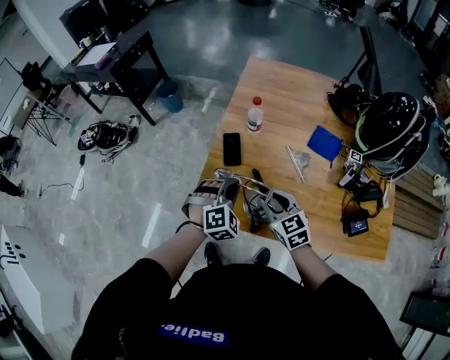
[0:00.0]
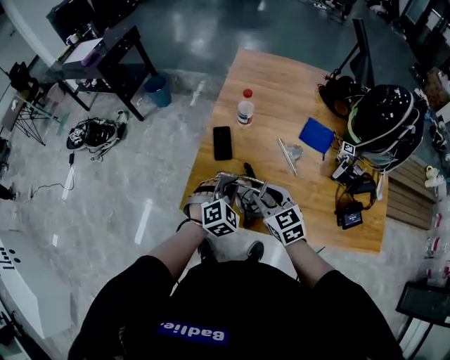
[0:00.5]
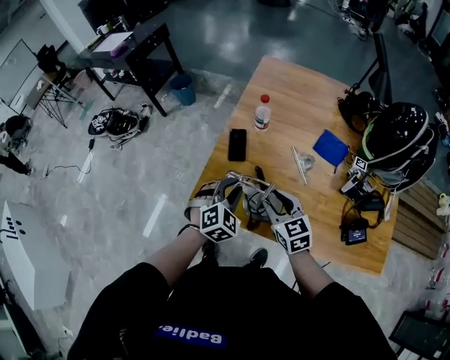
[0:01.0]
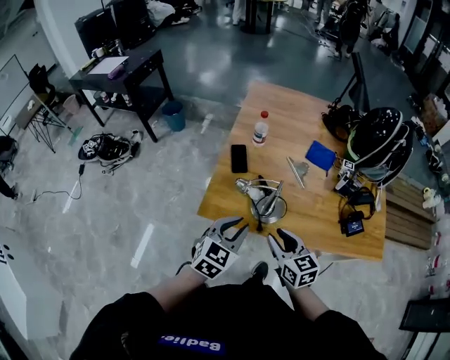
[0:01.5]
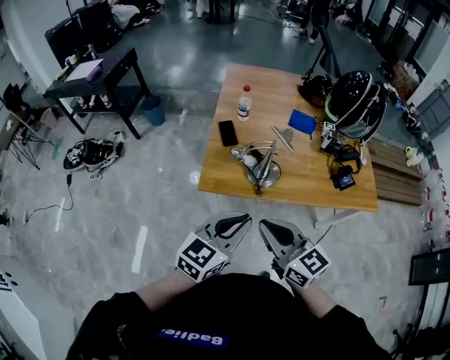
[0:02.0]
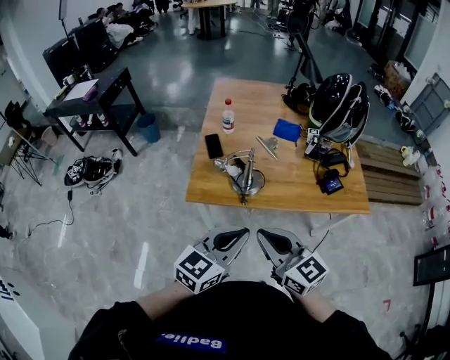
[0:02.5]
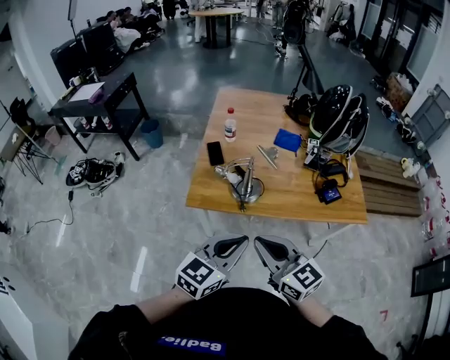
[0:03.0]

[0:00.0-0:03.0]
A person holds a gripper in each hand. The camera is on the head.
0:00.0 to 0:01.5: Both grippers travel together backward, roughly 15 cm. The left gripper rotates around the line of its fingers by approximately 40 degrees, counterclockwise from behind.
0:01.5 to 0:03.0: The grippers both shift backward and upward by roughly 20 cm. The right gripper closes its fingers; the left gripper turns by about 20 degrees.

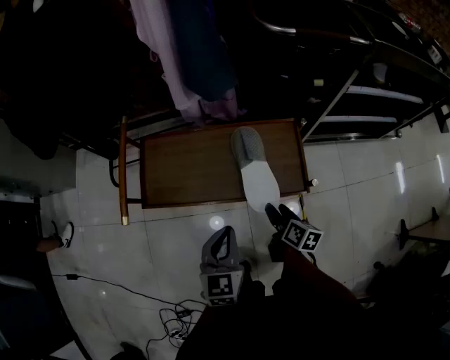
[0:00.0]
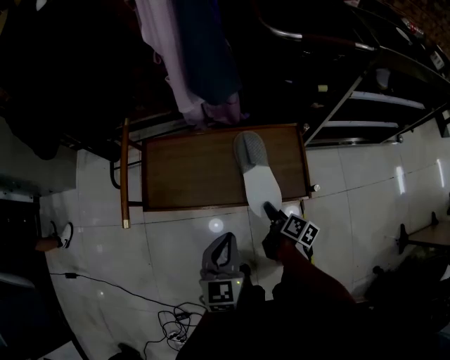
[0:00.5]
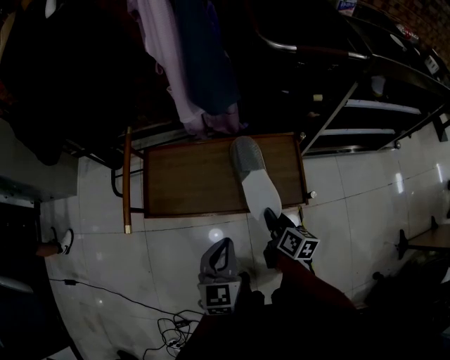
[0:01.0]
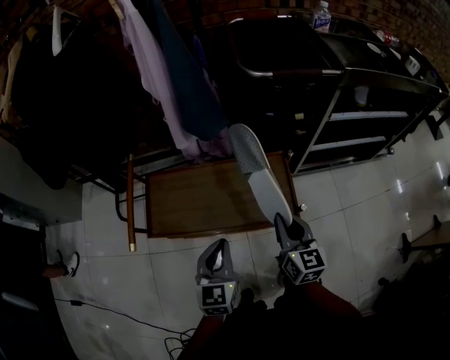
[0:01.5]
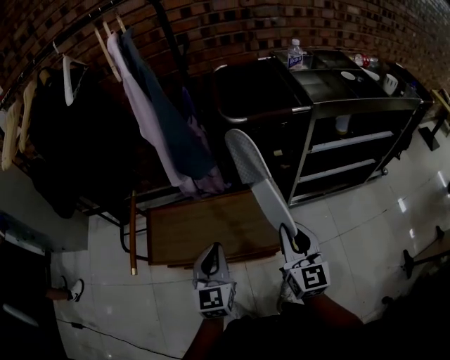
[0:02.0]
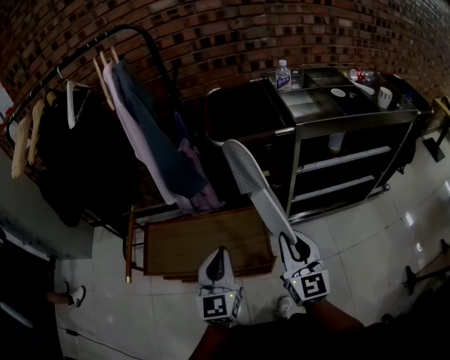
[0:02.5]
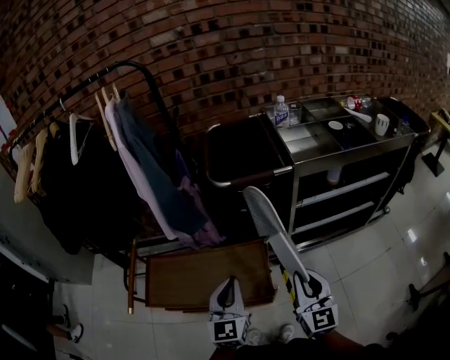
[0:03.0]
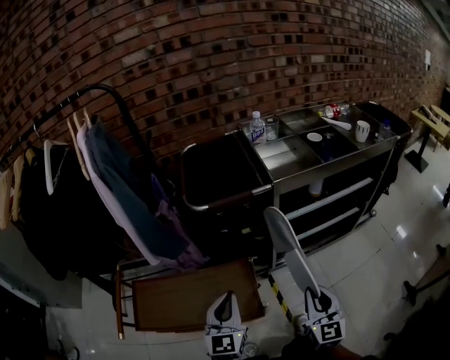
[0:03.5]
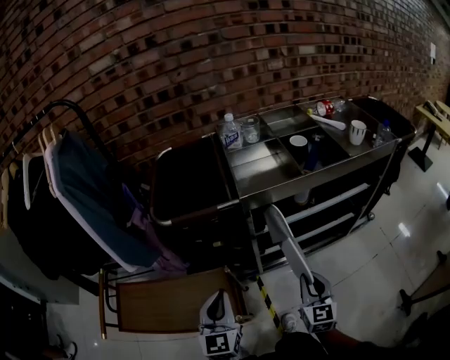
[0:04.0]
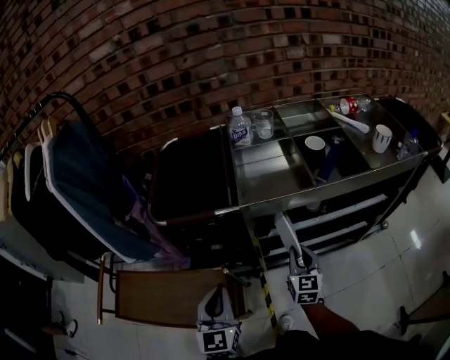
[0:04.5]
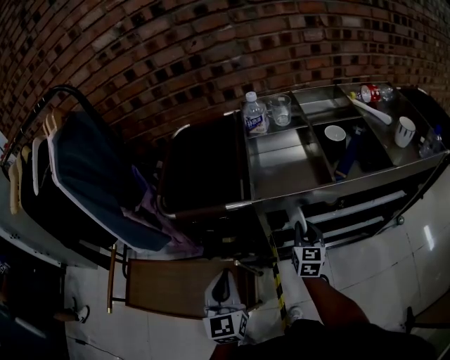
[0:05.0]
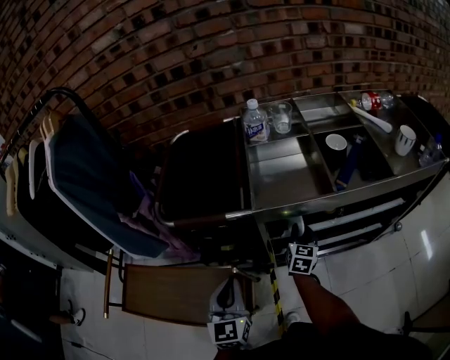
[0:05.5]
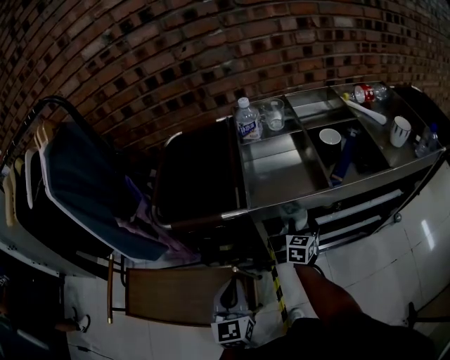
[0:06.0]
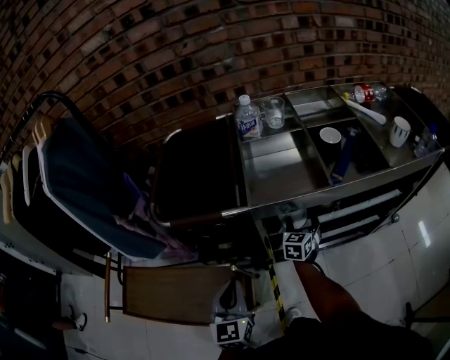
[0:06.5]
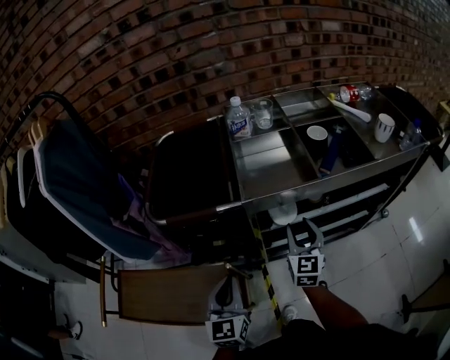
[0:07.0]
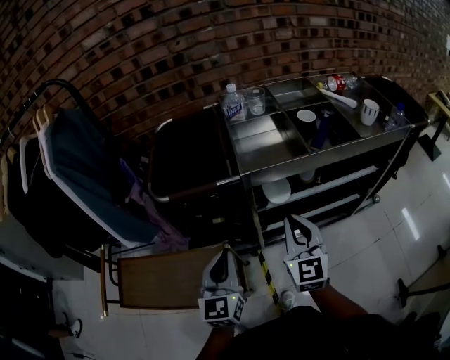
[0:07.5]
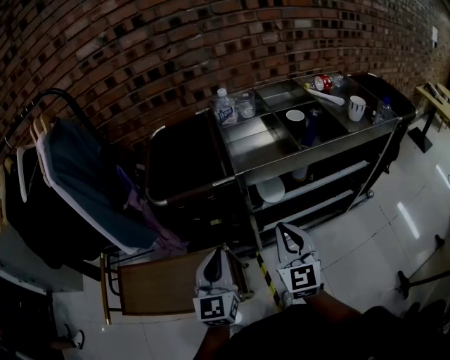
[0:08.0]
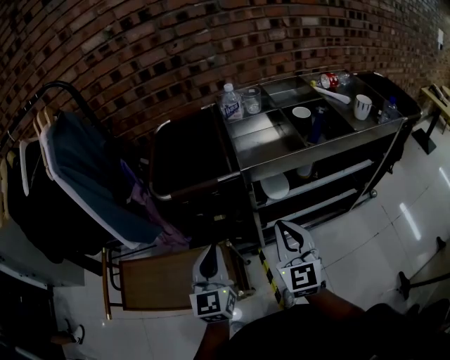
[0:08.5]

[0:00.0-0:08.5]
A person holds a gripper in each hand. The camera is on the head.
0:00.0 to 0:02.0: The left gripper moves upward and forward, approximately 15 cm, while the right gripper shifts approximately 30 cm upward, tilts its fingers approximately 30 degrees upward, and closes its fingers.
0:02.0 to 0:04.0: The right gripper moves to the right, approximately 30 cm. Meanwhile the left gripper is displaced to the right and forward by roughly 30 cm.
0:04.0 to 0:06.5: The left gripper shifts approximately 10 cm forward. Meanwhile the right gripper moves forward, about 30 cm, and opens up.
0:06.5 to 0:08.5: The right gripper moves upward and backward, approximately 35 cm, turns by about 30 degrees, and closes its fingers; the left gripper moves upward, some 10 cm.

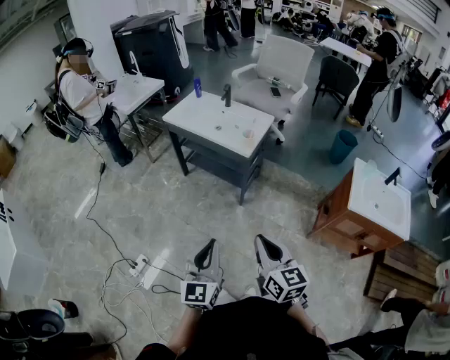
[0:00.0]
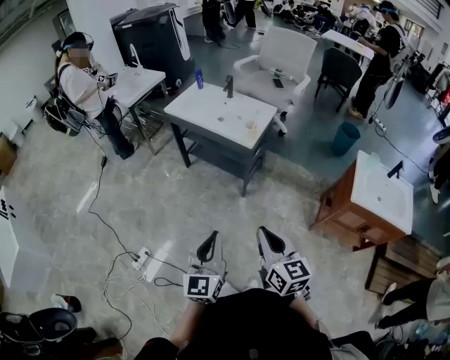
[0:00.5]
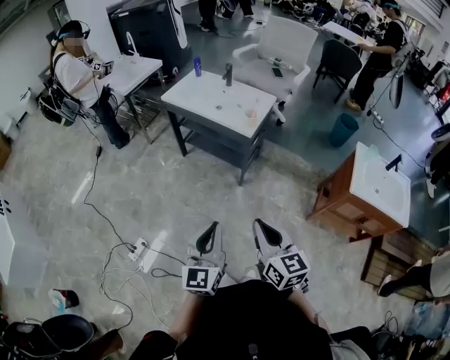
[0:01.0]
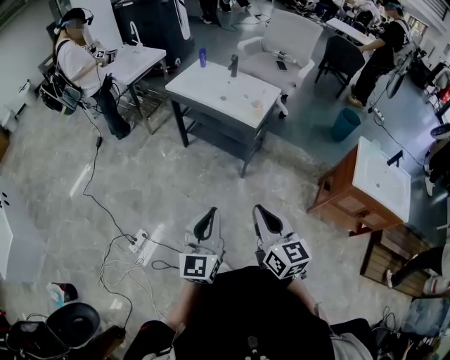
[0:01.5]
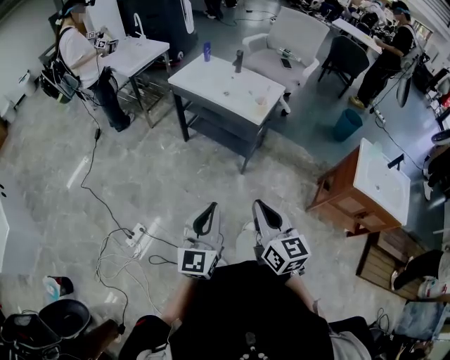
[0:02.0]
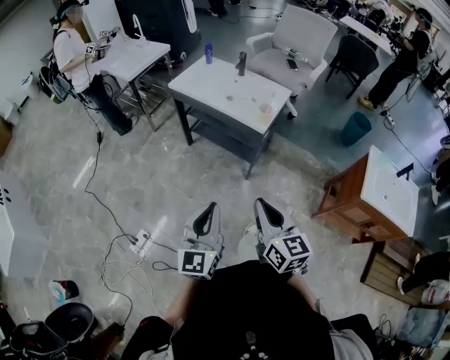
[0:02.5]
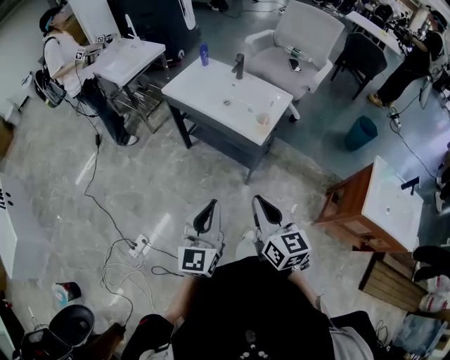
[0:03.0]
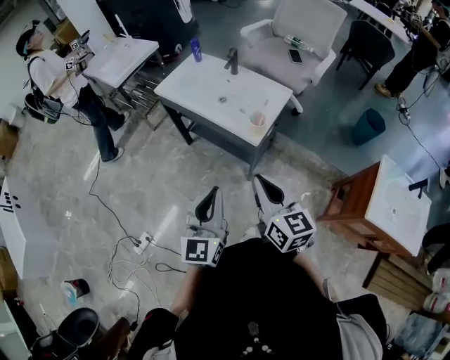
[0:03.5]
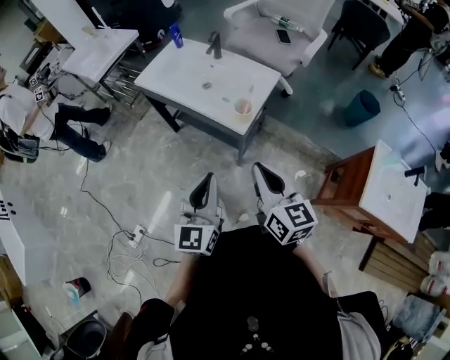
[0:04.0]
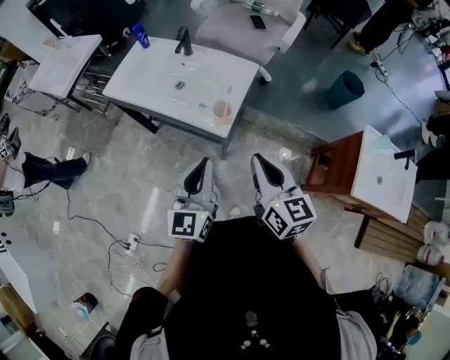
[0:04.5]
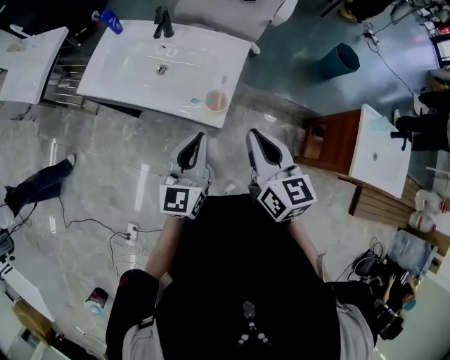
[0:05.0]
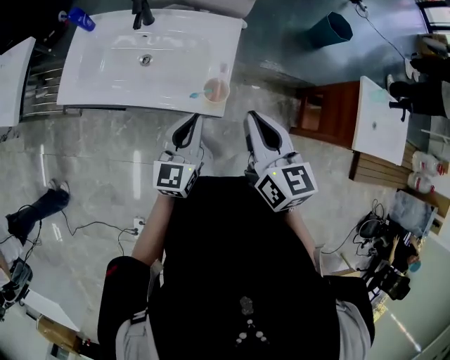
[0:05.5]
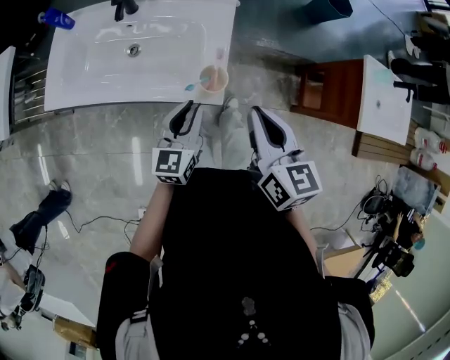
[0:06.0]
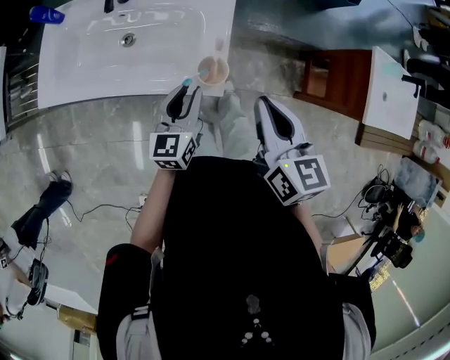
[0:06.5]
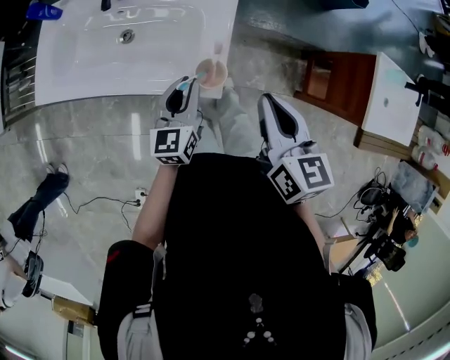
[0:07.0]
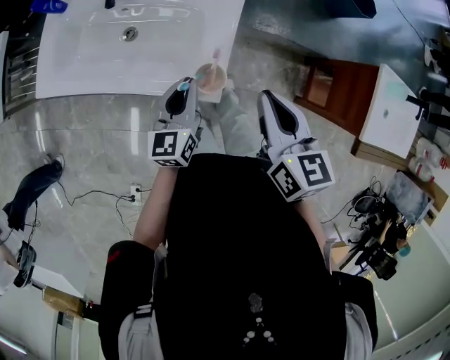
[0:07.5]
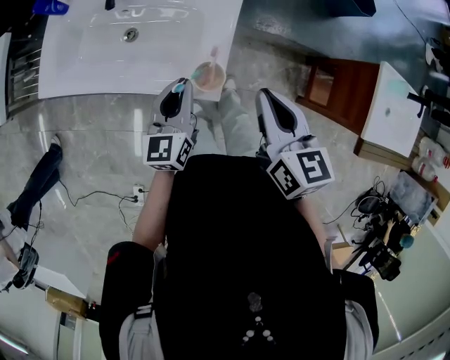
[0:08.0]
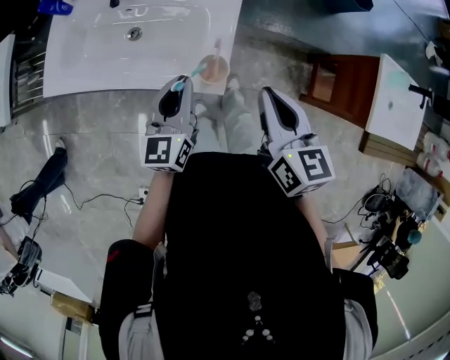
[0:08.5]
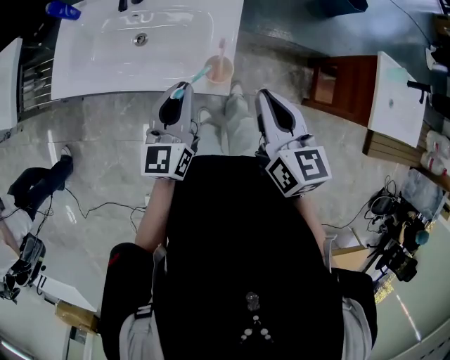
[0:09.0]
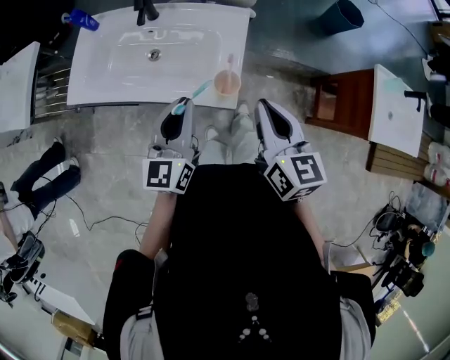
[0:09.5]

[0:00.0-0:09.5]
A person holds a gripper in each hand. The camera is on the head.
0:00.0 to 0:02.0: The two grippers go roughly 5 cm to the left.
0:02.0 to 0:04.0: The two grippers go approximately 35 cm forward and to the right.
0:04.0 to 0:05.5: The right gripper shifts by some 20 cm, and swivels roughly 30 degrees. Meanwhile the left gripper ends up approximately 30 cm from where it was, and rotates roughly 30 degrees.
0:05.5 to 0:07.5: The left gripper heads downward and forward, covering roughly 10 cm, while the right gripper moves forward and downward, roughly 10 cm.
0:07.5 to 0:09.5: The right gripper shifts by roughly 10 cm. Meanwhile the left gripper travels upward by approximately 15 cm.

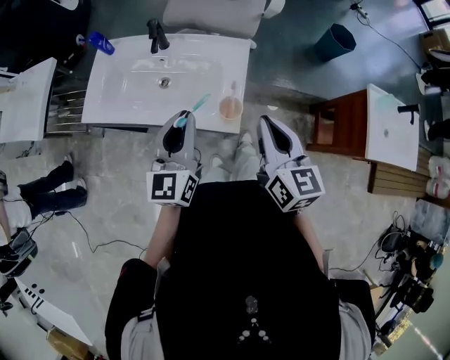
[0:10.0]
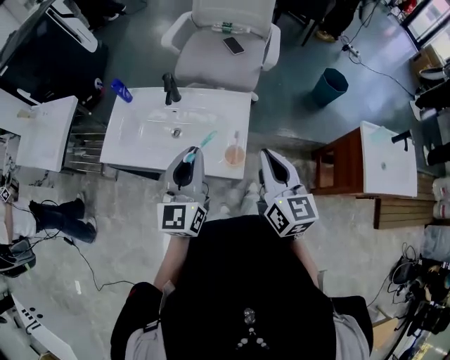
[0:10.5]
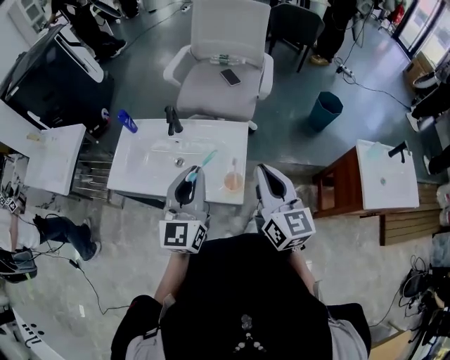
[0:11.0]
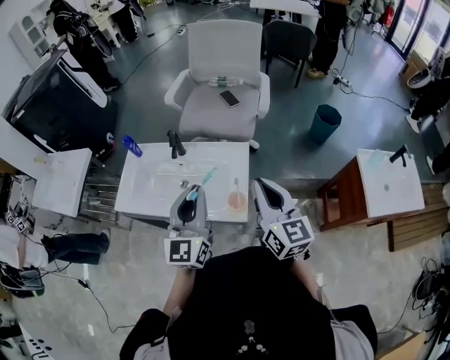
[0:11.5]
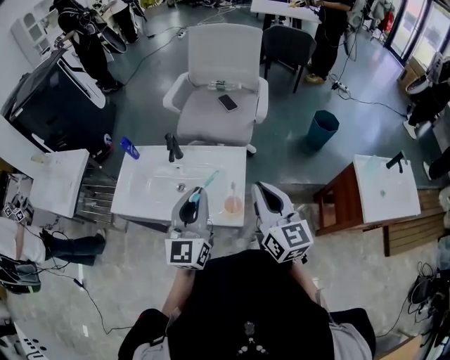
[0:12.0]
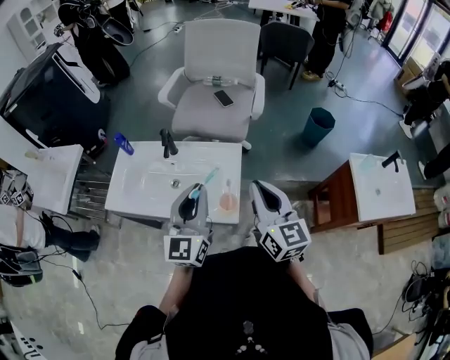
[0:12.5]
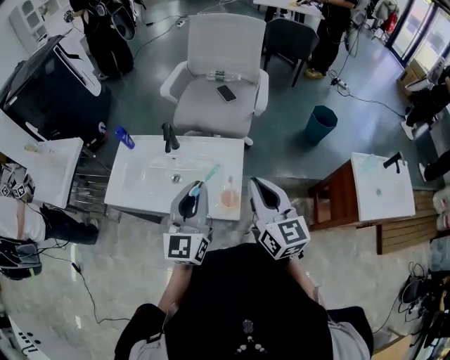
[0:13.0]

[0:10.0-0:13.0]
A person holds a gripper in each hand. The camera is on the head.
0:10.0 to 0:11.5: The grippers both shift upward by some 10 cm.
0:11.5 to 0:13.0: The grippers stay close to where they were, moving slightly.

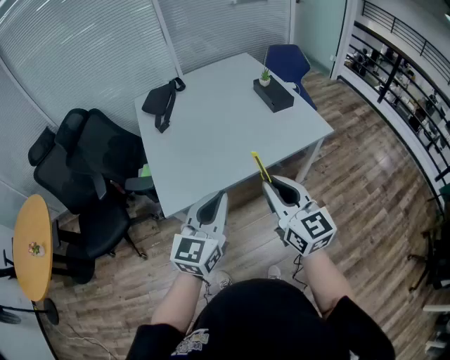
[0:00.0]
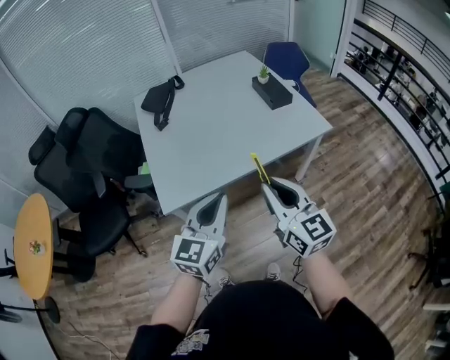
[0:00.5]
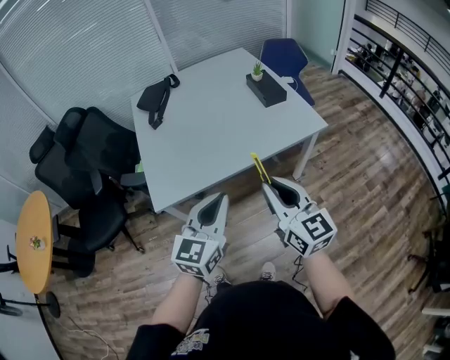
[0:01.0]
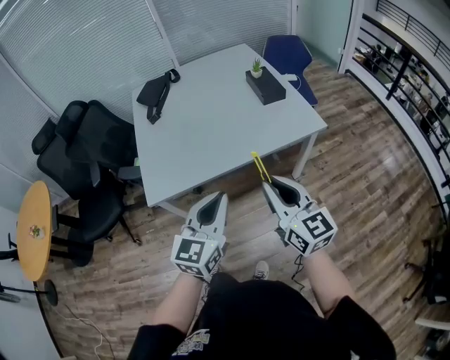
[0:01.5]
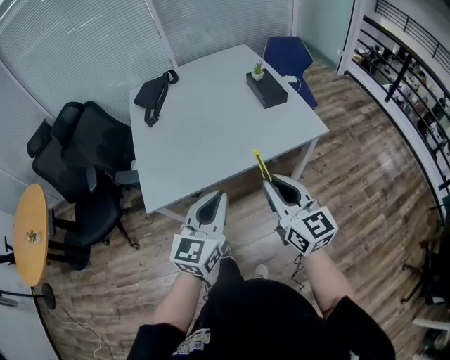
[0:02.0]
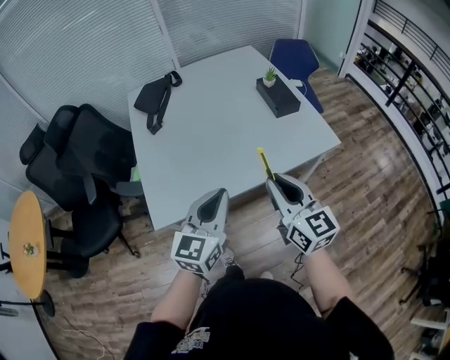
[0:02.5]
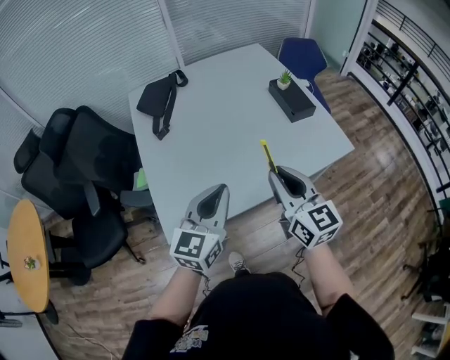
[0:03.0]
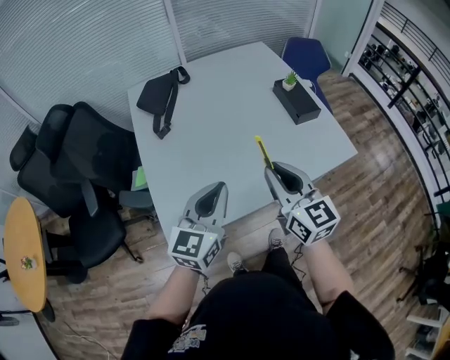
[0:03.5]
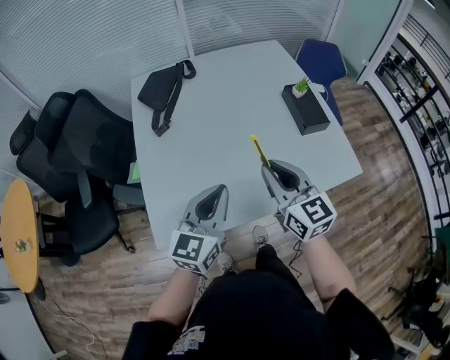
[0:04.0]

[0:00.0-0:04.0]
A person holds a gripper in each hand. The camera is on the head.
0:00.0 to 0:02.0: The grippers both shift to the right by roughly 10 cm.
0:02.0 to 0:04.0: Both grippers travel together forward and to the left, about 30 cm.
